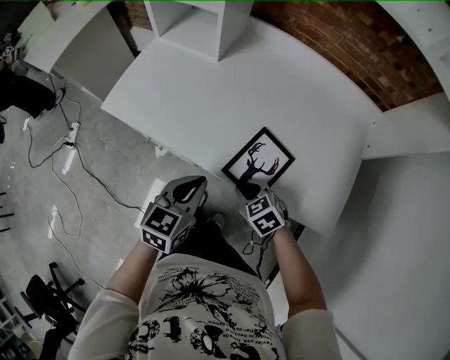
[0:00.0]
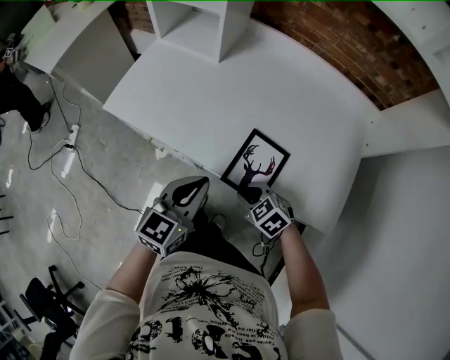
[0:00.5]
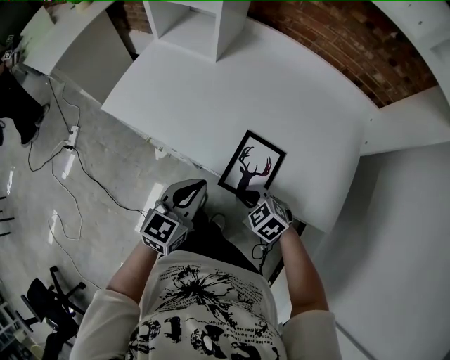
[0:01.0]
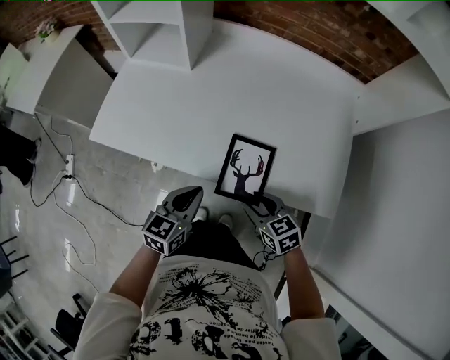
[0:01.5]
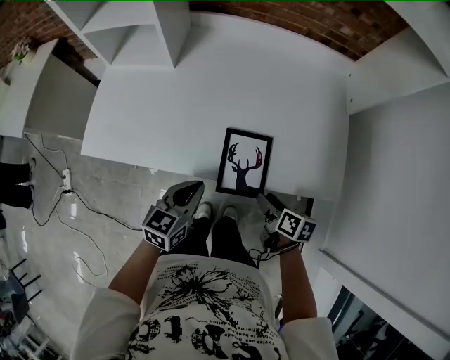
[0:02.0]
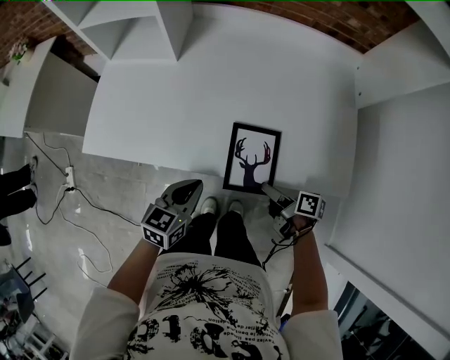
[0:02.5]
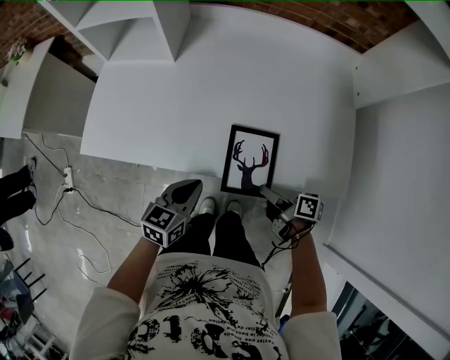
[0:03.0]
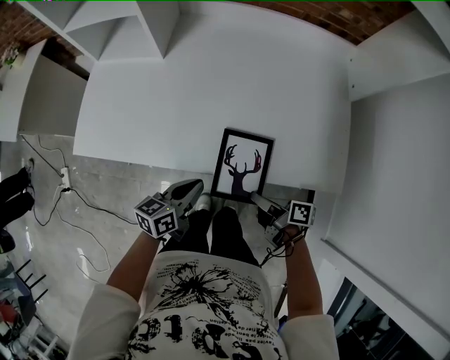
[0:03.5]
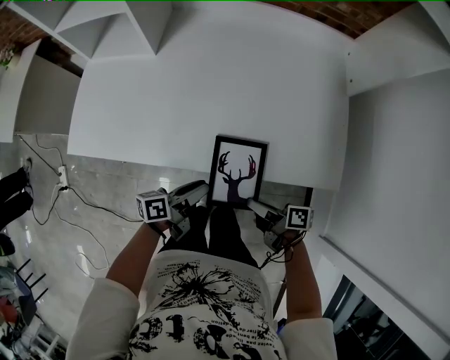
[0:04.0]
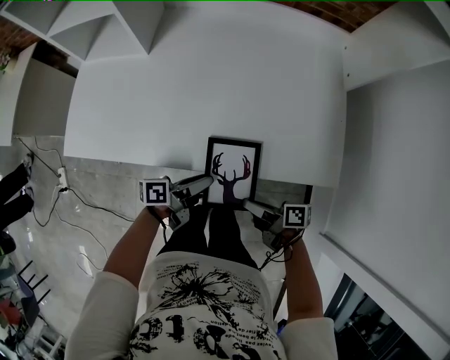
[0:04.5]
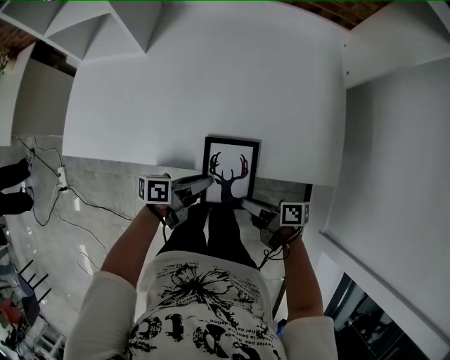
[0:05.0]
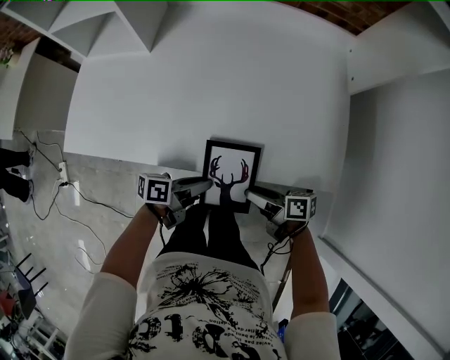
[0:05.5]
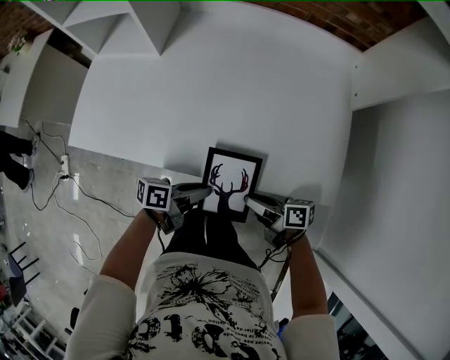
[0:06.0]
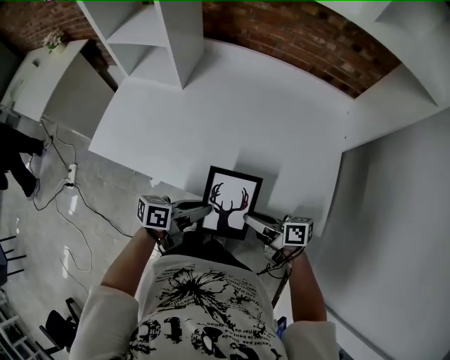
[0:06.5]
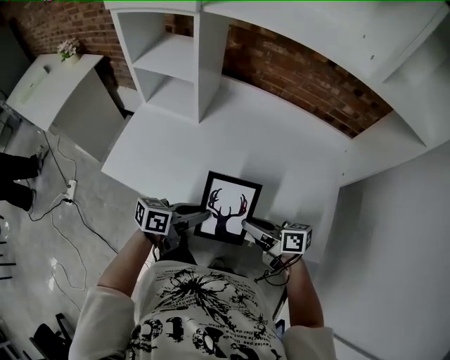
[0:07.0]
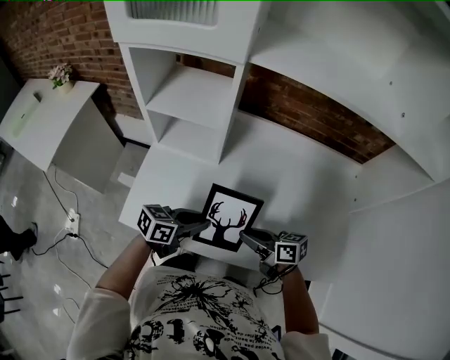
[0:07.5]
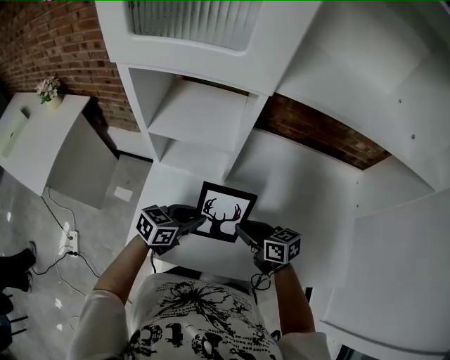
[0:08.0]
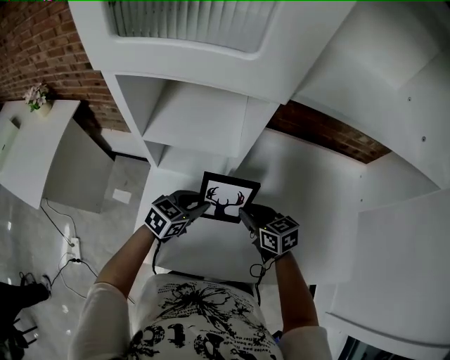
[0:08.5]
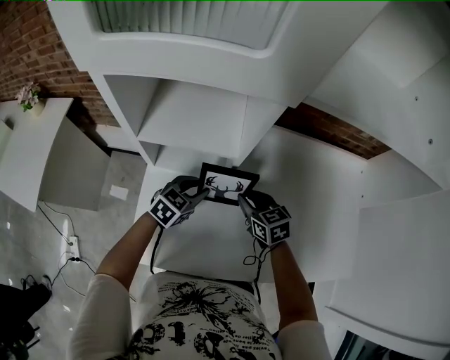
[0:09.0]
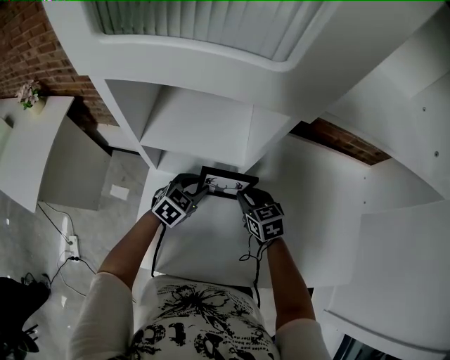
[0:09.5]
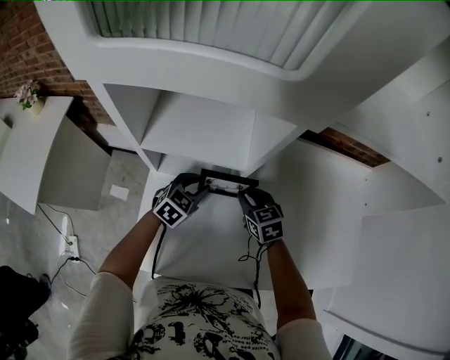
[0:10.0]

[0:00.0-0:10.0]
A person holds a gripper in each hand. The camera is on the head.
0:00.0 to 0:02.0: The right gripper moves roughly 10 cm, rotates around the line of its fingers by about 80 degrees, clockwise from behind, and opens.
0:02.0 to 0:04.0: The right gripper moves roughly 5 cm, changes its angle by some 40 degrees, and closes its fingers; the left gripper is displaced downward by roughly 10 cm, rolls counterclockwise, seen from behind, by approximately 50 degrees, and opens its fingers.
0:04.0 to 0:06.0: The right gripper changes place by some 5 cm.
0:06.0 to 0:08.0: The right gripper changes place by approximately 40 cm, and swivels approximately 40 degrees. Meanwhile the left gripper shifts by about 40 cm, and twists some 40 degrees clockwise, seen from behind.
0:08.0 to 0:10.0: The grippers both shift forward by roughly 15 cm. The left gripper turns by roughly 30 degrees. Meanwhile the right gripper turns by roughly 30 degrees.

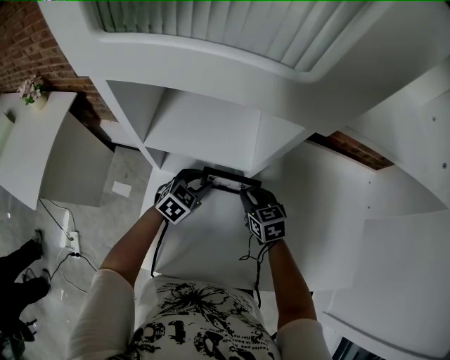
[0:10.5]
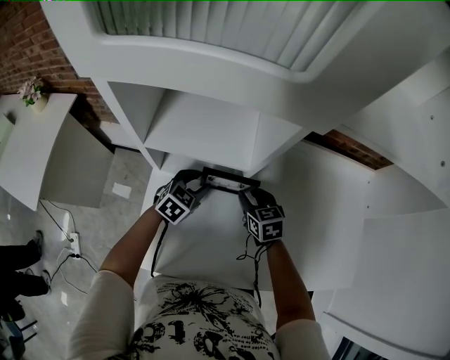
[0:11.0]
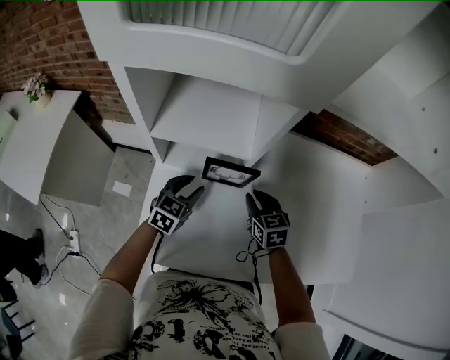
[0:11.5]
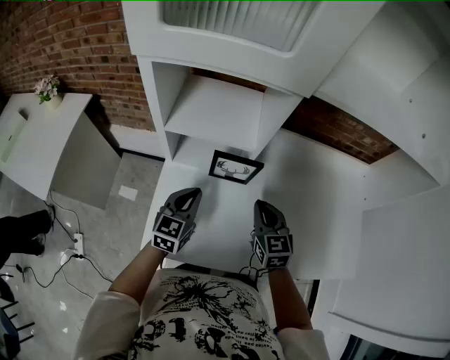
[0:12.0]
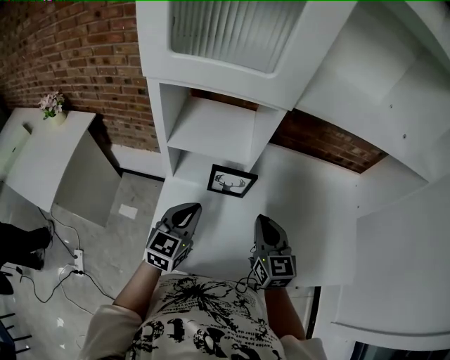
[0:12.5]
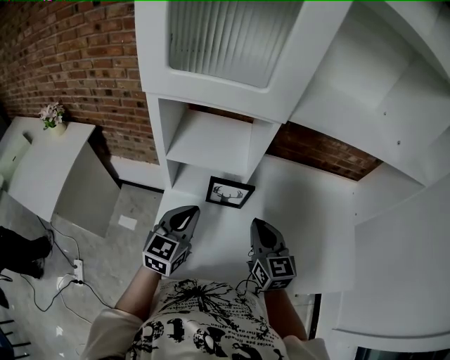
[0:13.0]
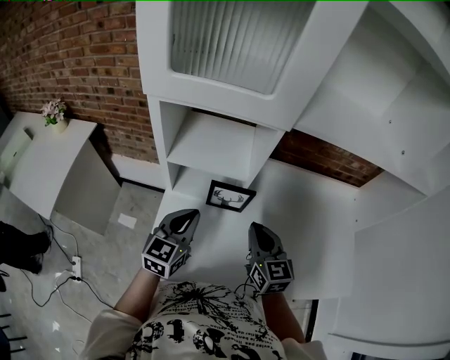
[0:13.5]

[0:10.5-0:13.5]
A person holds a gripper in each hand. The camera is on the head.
0:10.5 to 0:12.0: Both grippers move backward and upward, about 15 cm. The left gripper turns by about 30 degrees, and closes. The right gripper swivels some 20 degrees, and closes.
0:12.0 to 0:13.5: The two grippers go some 10 cm upward.

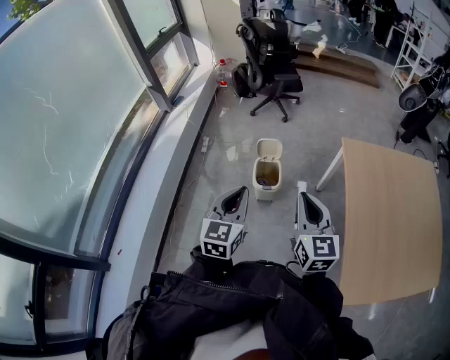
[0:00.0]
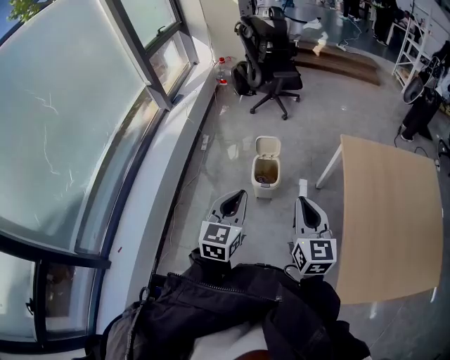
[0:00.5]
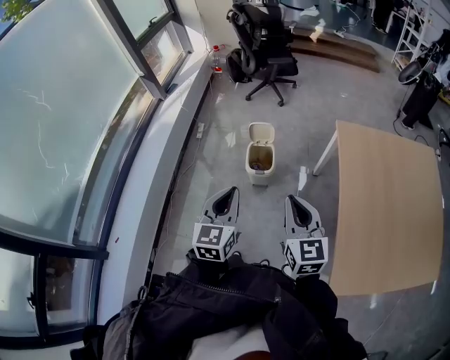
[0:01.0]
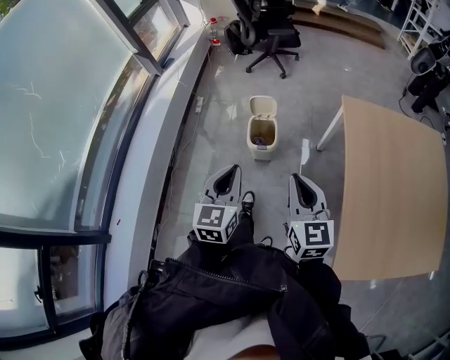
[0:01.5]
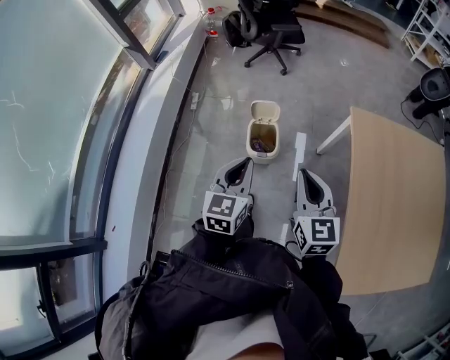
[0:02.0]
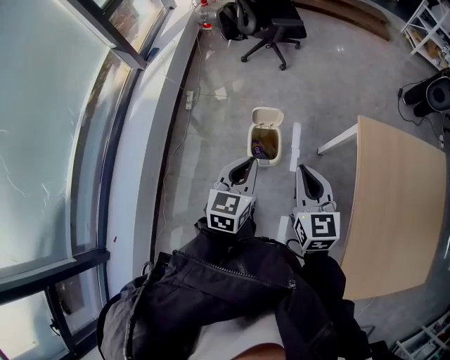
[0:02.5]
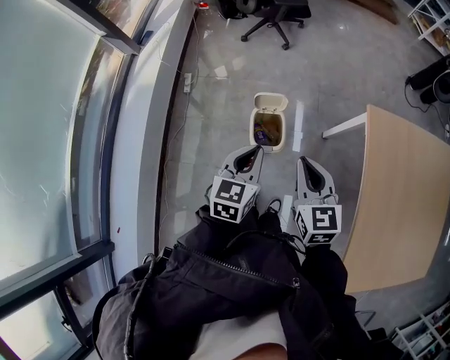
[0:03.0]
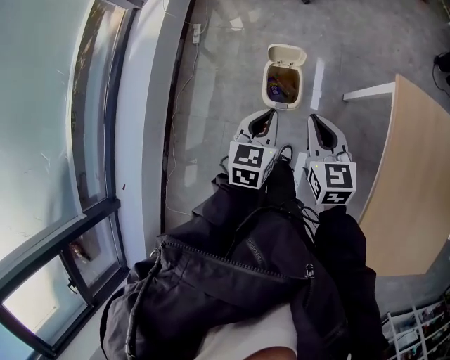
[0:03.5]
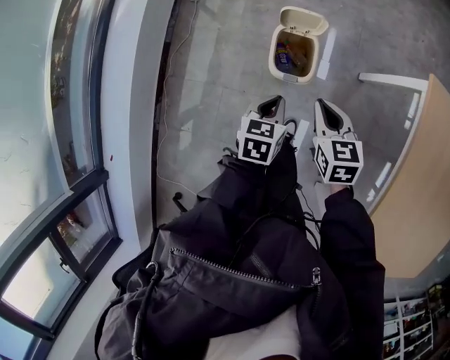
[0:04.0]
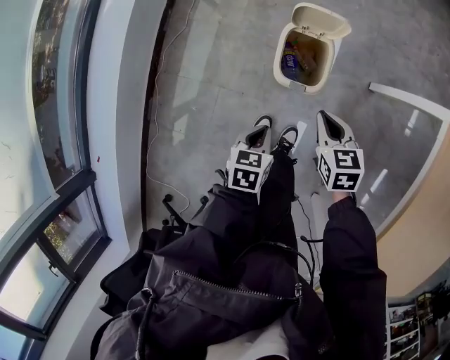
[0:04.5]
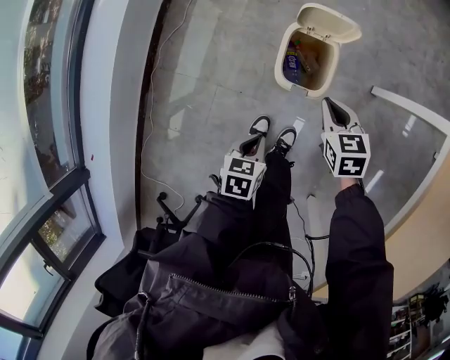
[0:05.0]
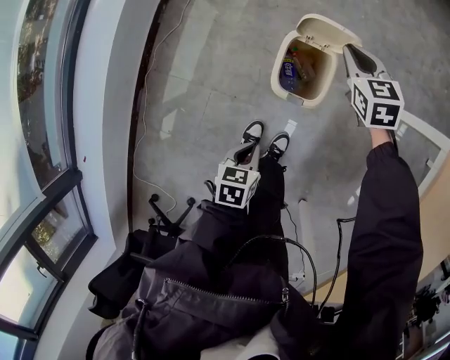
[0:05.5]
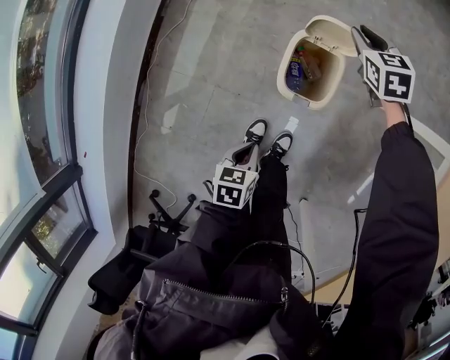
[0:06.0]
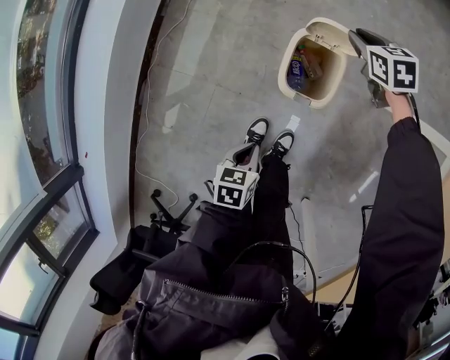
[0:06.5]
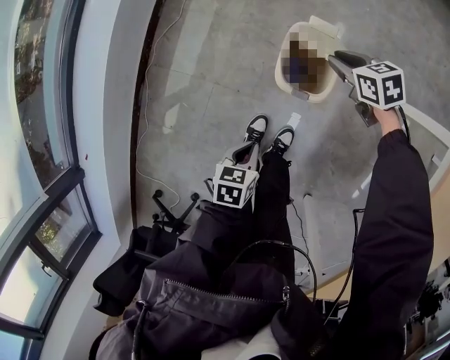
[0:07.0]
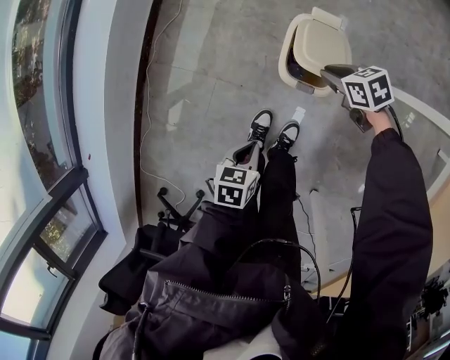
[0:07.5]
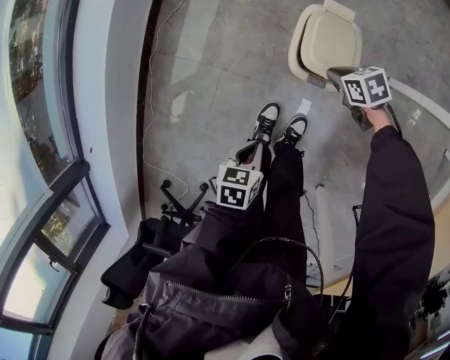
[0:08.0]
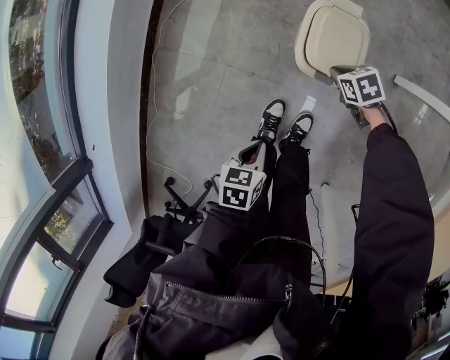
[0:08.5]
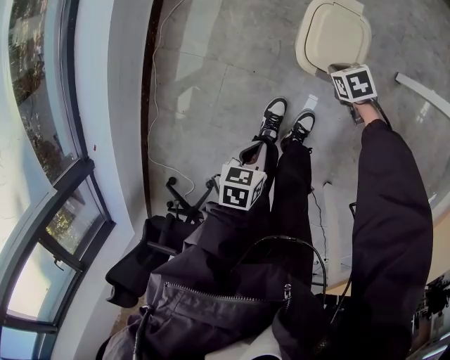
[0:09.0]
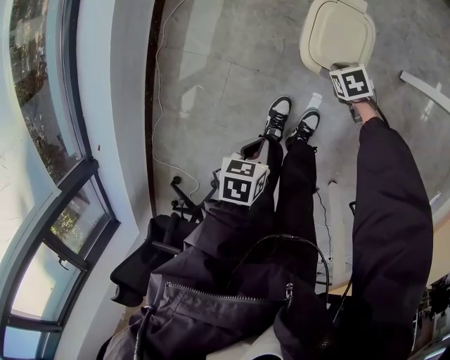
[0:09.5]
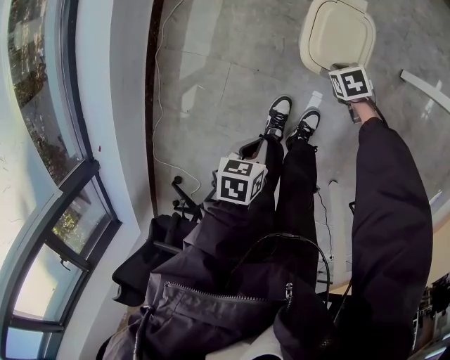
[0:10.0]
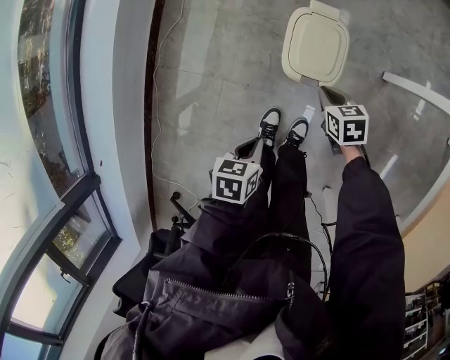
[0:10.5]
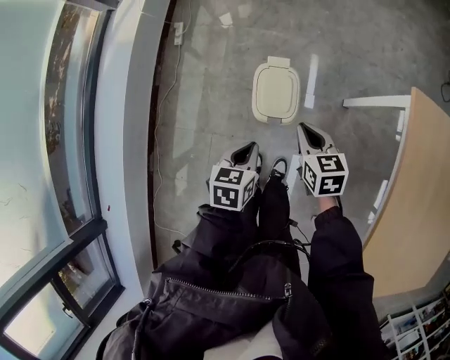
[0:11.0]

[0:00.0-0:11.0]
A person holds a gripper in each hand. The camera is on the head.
0:00.0 to 0:02.0: The grippers both shift forward and downward by approximately 15 cm.
0:02.0 to 0:03.5: The right gripper heads forward and downward, covering about 25 cm. Meanwhile the left gripper is displaced downward and forward by about 25 cm.
0:03.5 to 0:05.5: The left gripper goes about 35 cm downward, and swivels some 30 degrees; the right gripper heads downward and forward, covering approximately 40 cm, and swivels some 20 degrees.
0:05.5 to 0:07.5: The right gripper shifts about 15 cm downward, and swivels approximately 40 degrees.
0:07.5 to 0:09.0: The left gripper shifts by roughly 5 cm, while the right gripper travels downward by roughly 10 cm.
0:09.0 to 0:11.0: The right gripper moves upward, approximately 35 cm, and changes its angle by roughly 40 degrees. The left gripper is displaced upward by roughly 20 cm, and turns by about 20 degrees.

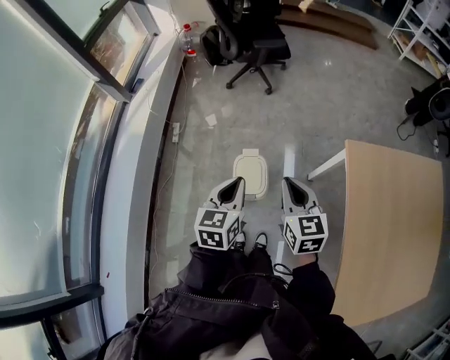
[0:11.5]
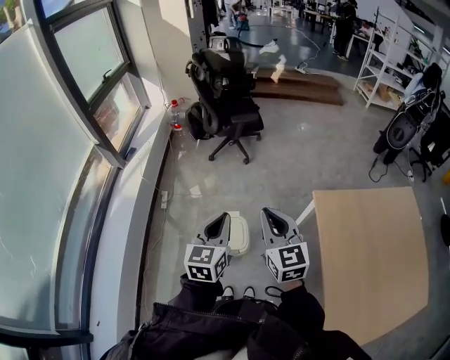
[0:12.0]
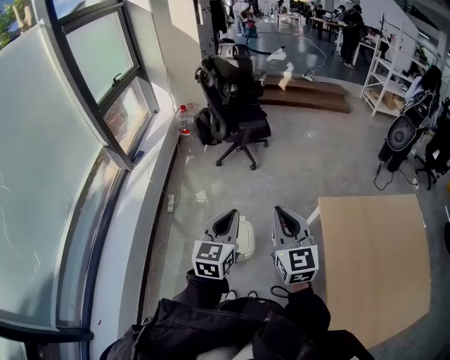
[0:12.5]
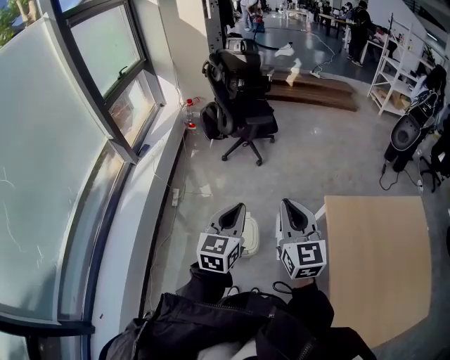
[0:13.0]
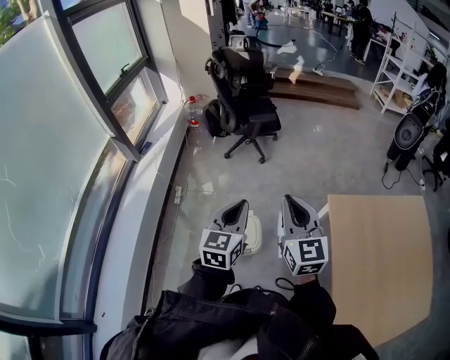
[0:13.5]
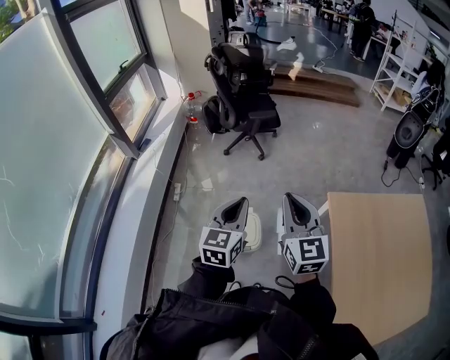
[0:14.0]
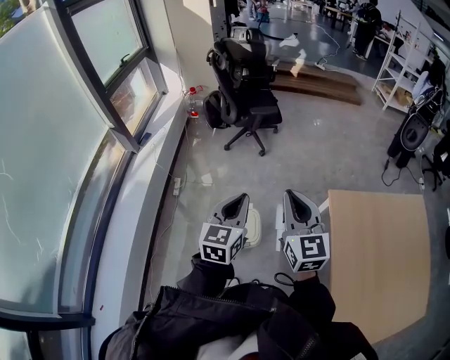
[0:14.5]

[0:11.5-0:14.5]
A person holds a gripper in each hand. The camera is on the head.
0:11.5 to 0:13.0: Both grippers move upward, roughly 20 cm. The right gripper swivels some 20 degrees.
0:13.0 to 0:14.5: There are only small adjustments of the grippers.
